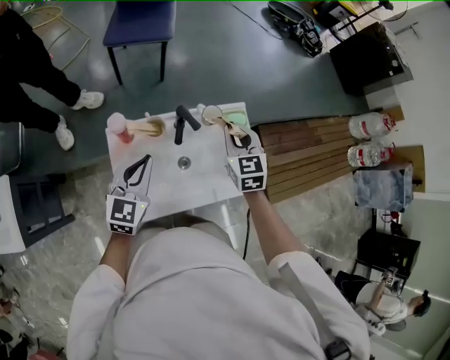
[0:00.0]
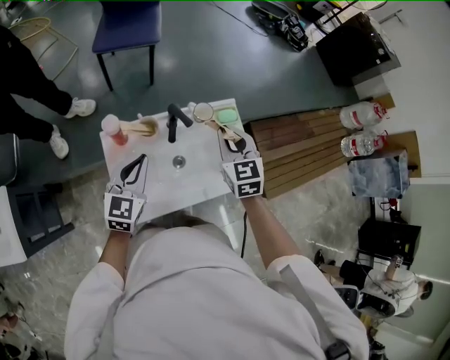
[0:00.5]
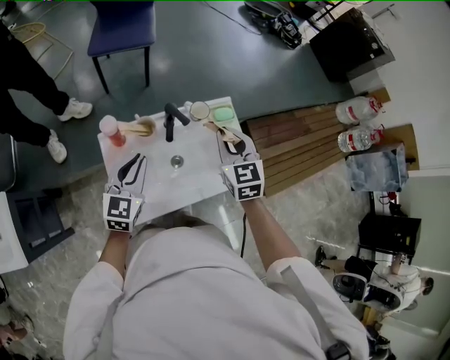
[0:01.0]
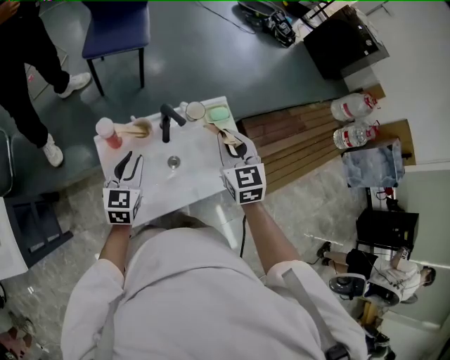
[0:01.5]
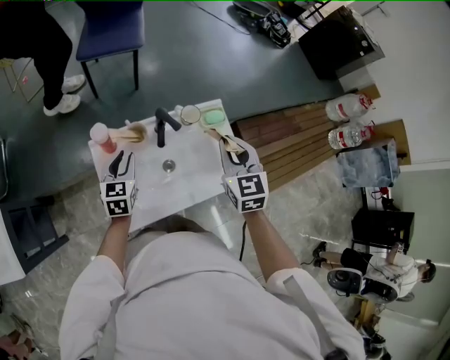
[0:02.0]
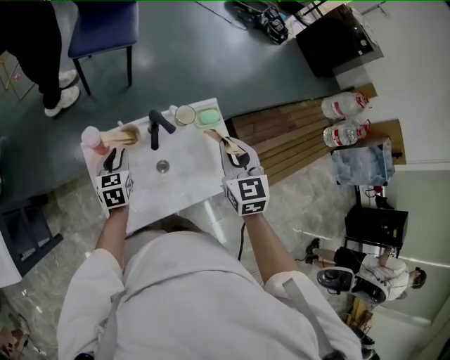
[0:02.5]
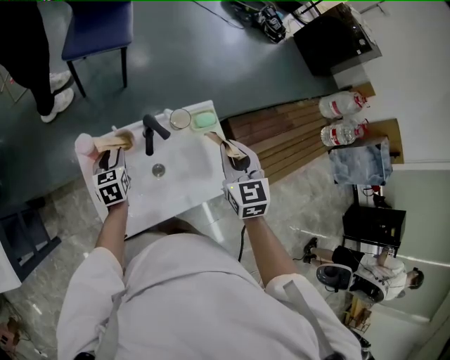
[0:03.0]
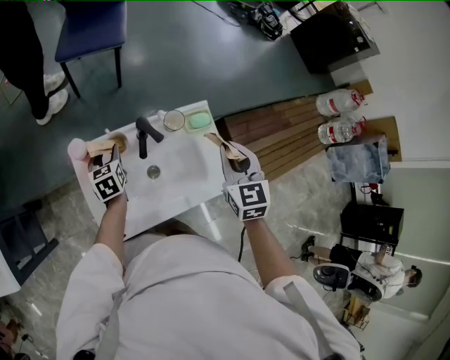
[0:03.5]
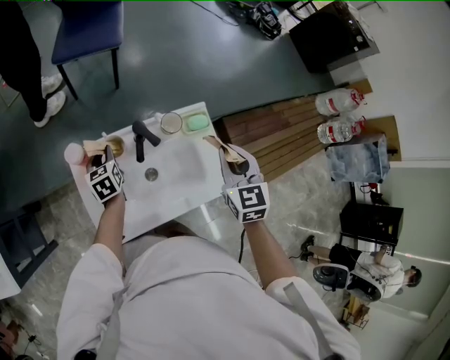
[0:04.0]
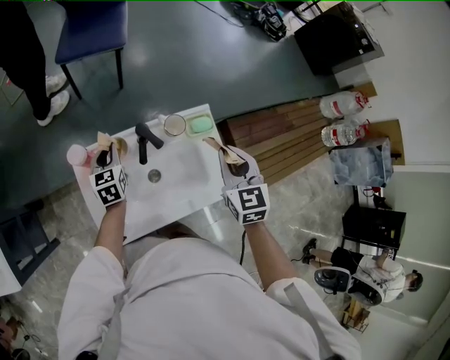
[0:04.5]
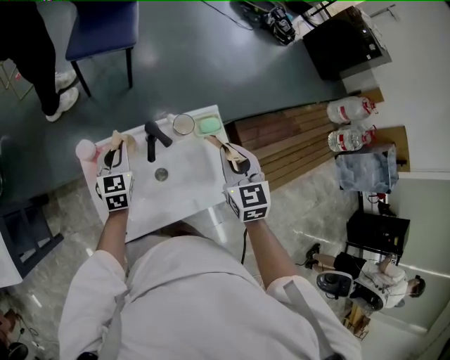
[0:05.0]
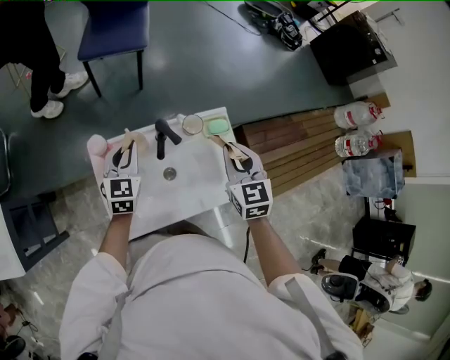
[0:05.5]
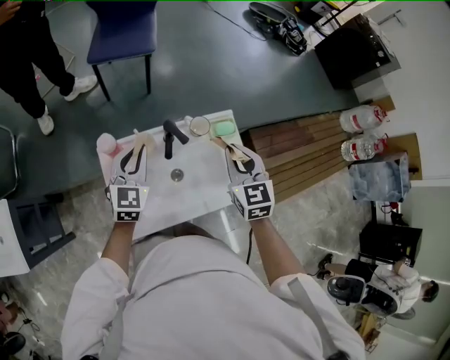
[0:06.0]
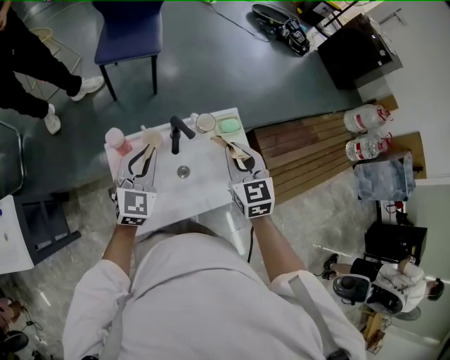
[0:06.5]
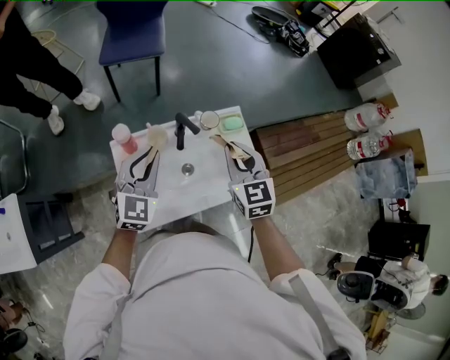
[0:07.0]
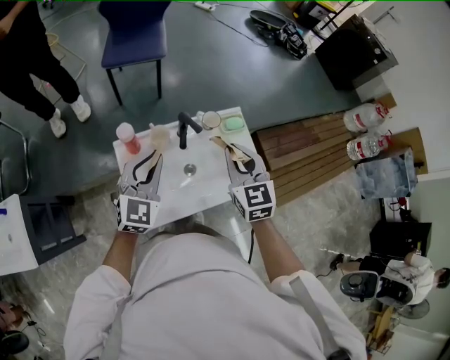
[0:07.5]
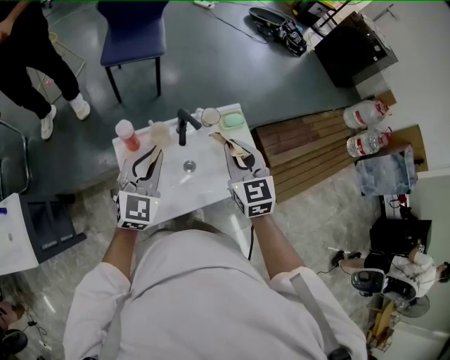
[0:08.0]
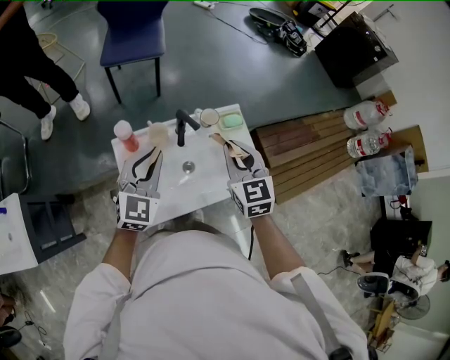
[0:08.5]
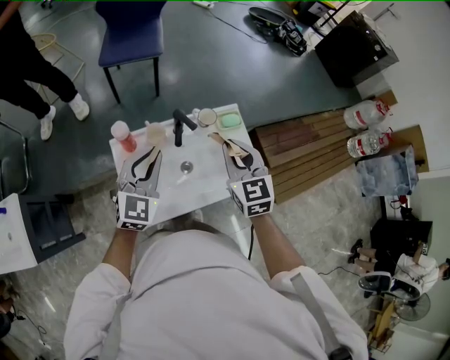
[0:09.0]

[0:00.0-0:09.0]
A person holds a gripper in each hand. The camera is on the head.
0:00.0 to 0:02.0: The right gripper goes some 10 cm backward and upward; the left gripper travels downward by some 10 cm, and opens.
0:02.0 to 0:04.5: The left gripper shifts roughly 10 cm forward, and opens, then closes once more, while the right gripper moves to the right, roughly 5 cm.
0:04.5 to 0:07.0: The left gripper moves upward and backward, some 20 cm, and turns by approximately 40 degrees. The right gripper shifts about 10 cm to the left.
0:07.0 to 0:09.0: The grippers stay close to where they were, moving slightly.

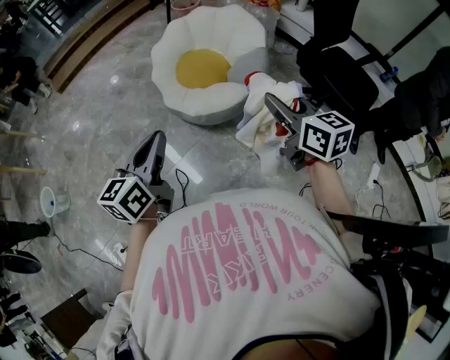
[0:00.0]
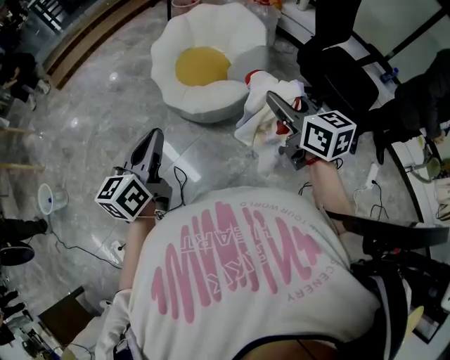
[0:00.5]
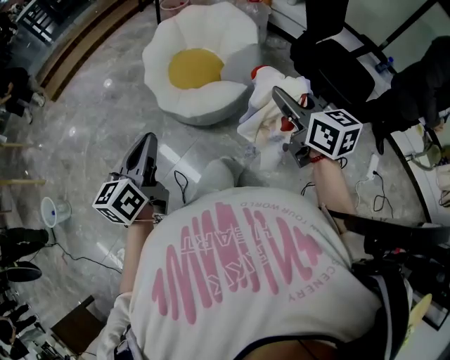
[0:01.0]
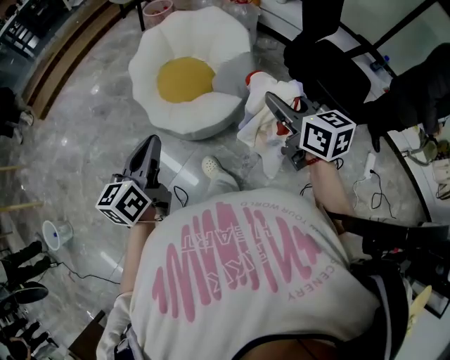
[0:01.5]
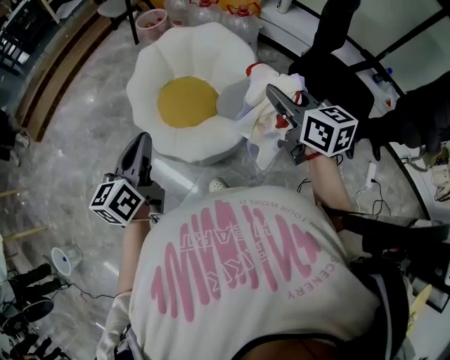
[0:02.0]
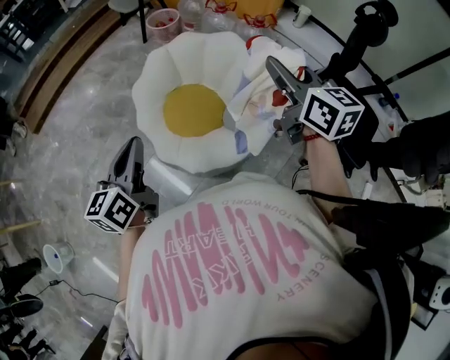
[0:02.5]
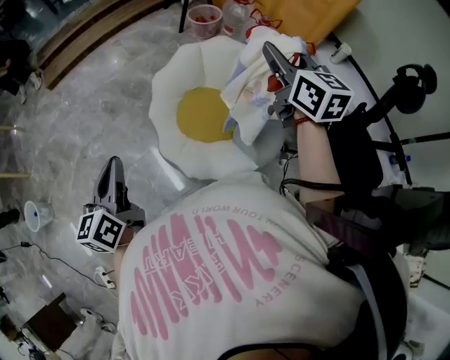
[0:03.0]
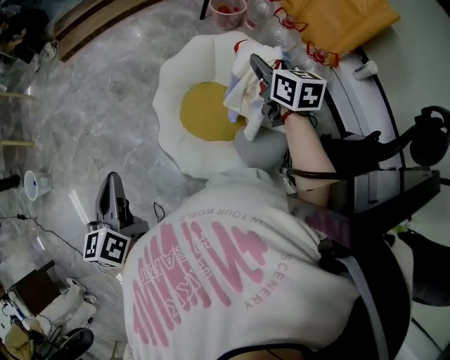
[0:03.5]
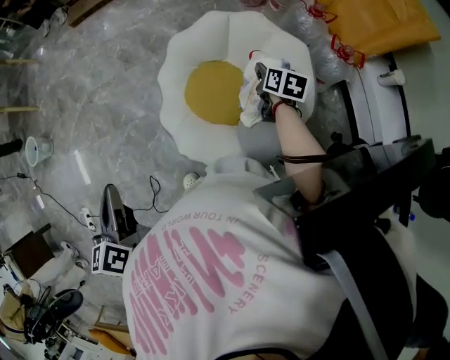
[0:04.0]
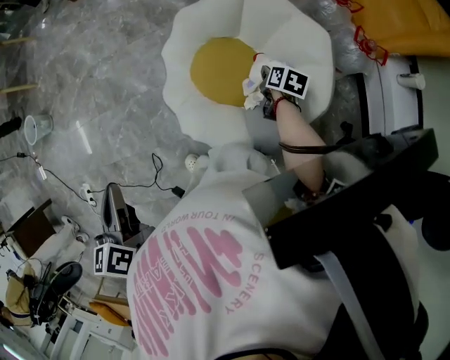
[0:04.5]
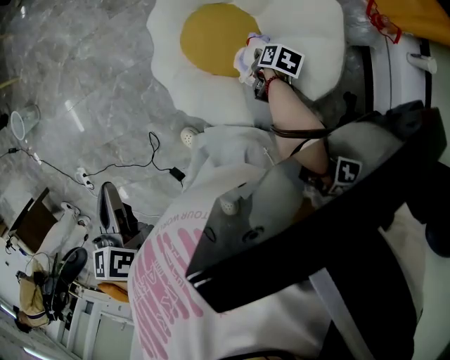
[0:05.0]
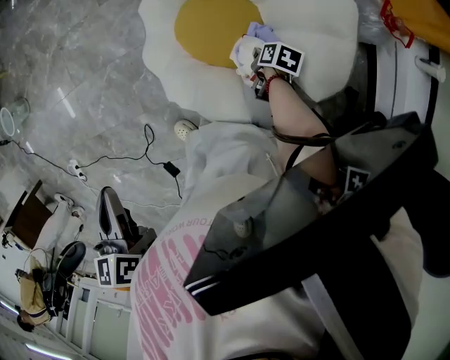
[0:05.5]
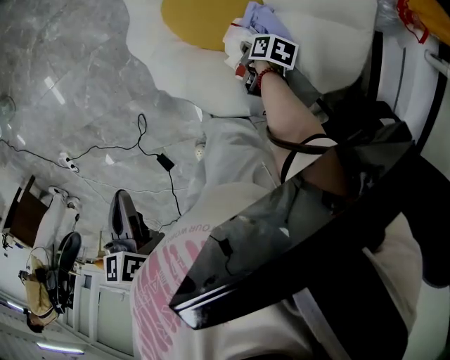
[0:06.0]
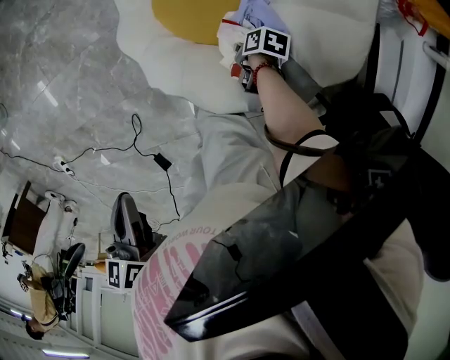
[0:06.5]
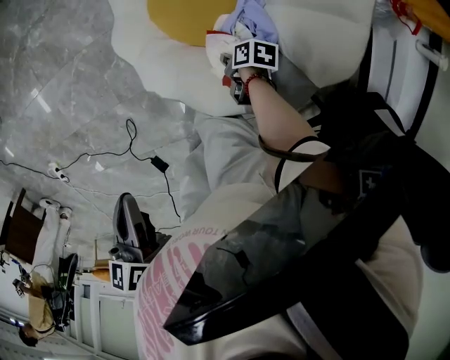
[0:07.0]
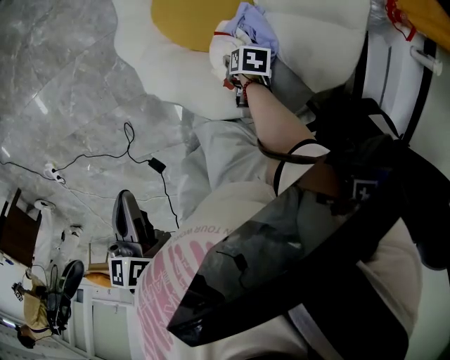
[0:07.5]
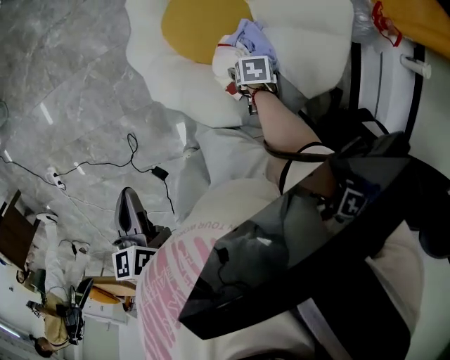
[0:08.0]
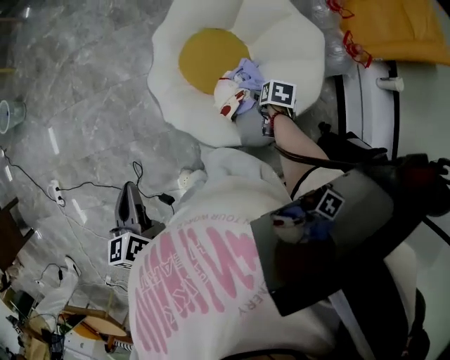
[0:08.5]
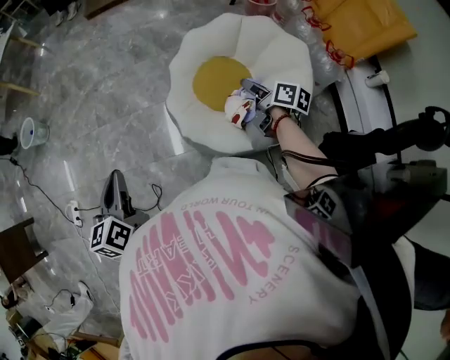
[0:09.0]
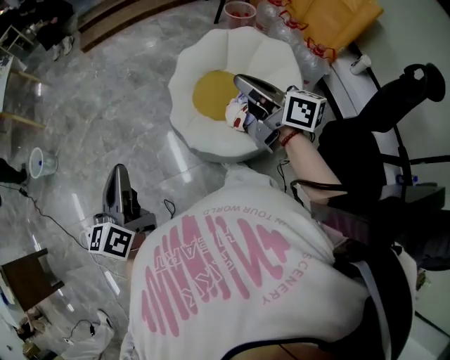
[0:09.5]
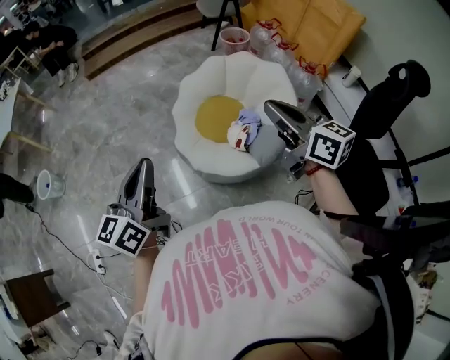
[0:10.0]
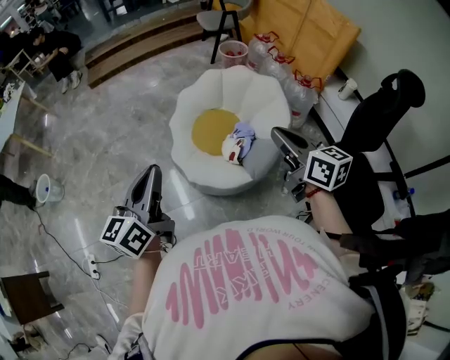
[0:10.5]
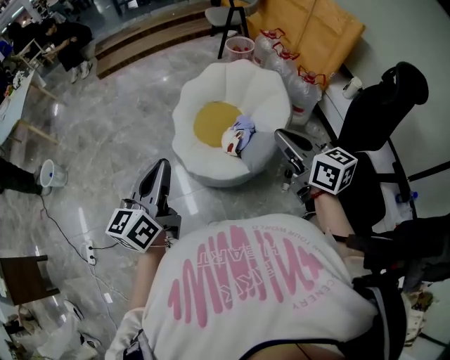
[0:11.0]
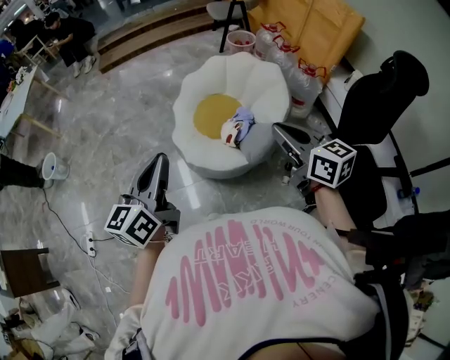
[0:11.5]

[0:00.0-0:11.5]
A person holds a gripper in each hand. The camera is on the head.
0:00.0 to 0:02.0: The grippers both shift forward by some 25 cm.
0:02.0 to 0:04.0: The left gripper rotates some 60 degrees. The right gripper ends up roughly 50 cm from where it was, and swivels about 30 degrees.
0:04.0 to 0:06.0: The right gripper shifts some 30 cm downward, and swivels roughly 40 degrees, while the left gripper shifts roughly 10 cm downward, and points its fingers approximately 40 degrees further downward.
0:06.0 to 0:07.5: The right gripper rotates roughly 20 degrees, and opens up.
0:07.5 to 0:09.5: The right gripper goes about 50 cm upward, tilts its fingers roughly 80 degrees upward, and closes up, while the left gripper ends up roughly 20 cm from where it was, and points its fingers some 50 degrees further upward.
0:09.5 to 0:11.5: The right gripper goes about 20 cm backward and to the right, and changes its angle by about 20 degrees. Meanwhile the left gripper heads to the right, covering some 15 cm.

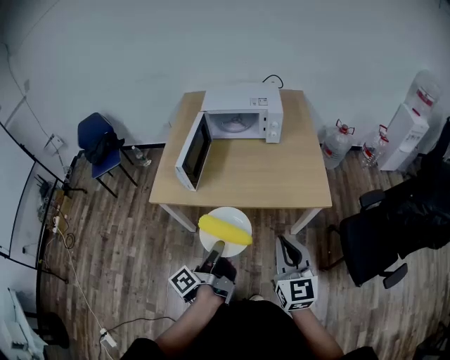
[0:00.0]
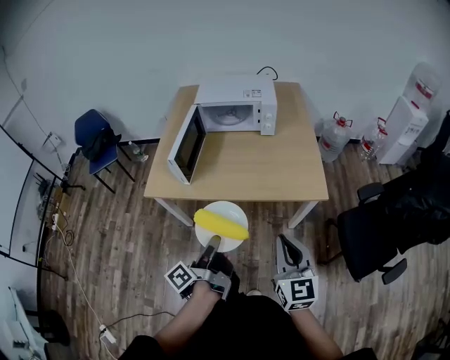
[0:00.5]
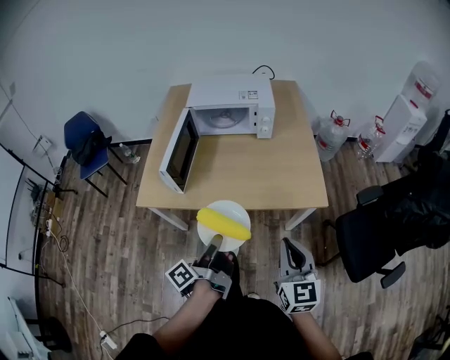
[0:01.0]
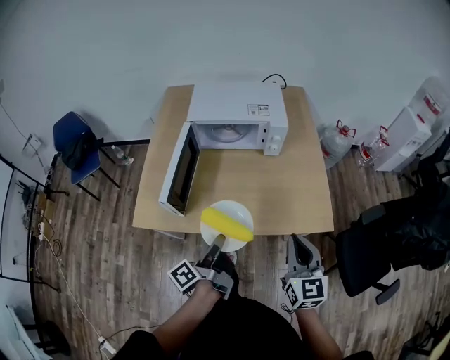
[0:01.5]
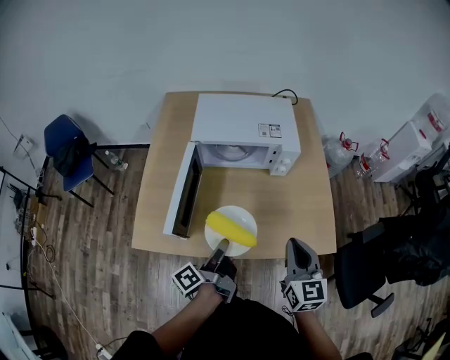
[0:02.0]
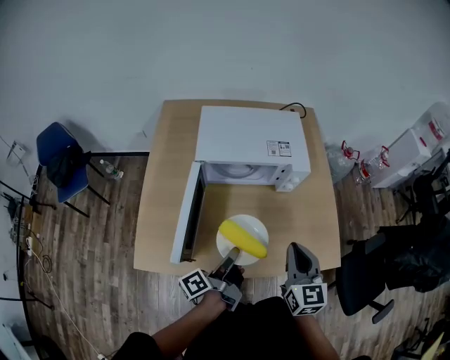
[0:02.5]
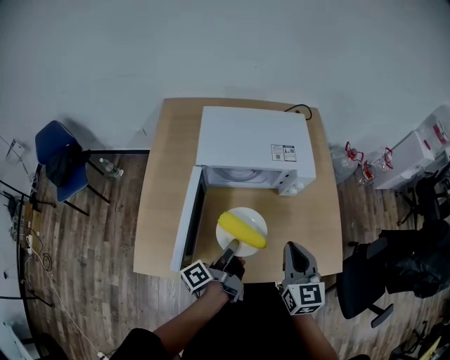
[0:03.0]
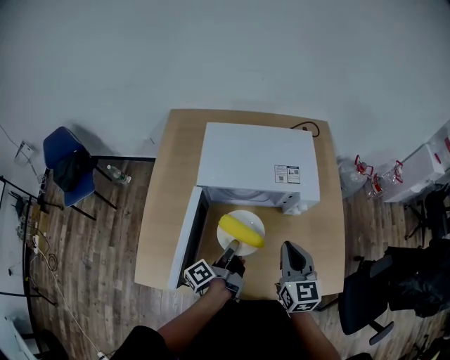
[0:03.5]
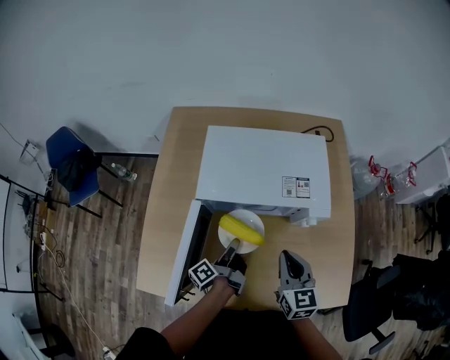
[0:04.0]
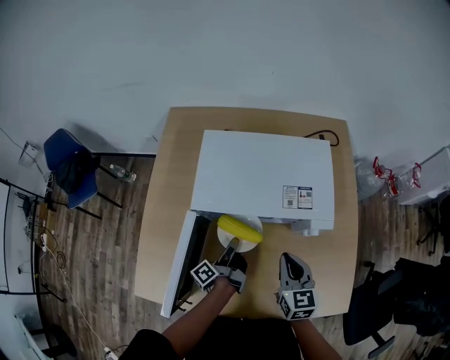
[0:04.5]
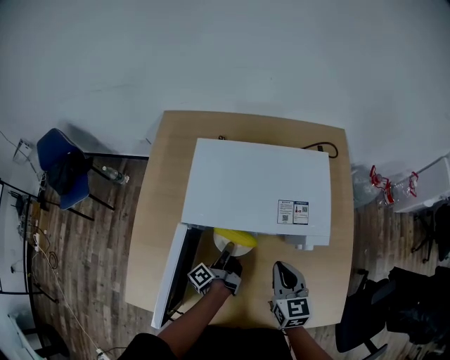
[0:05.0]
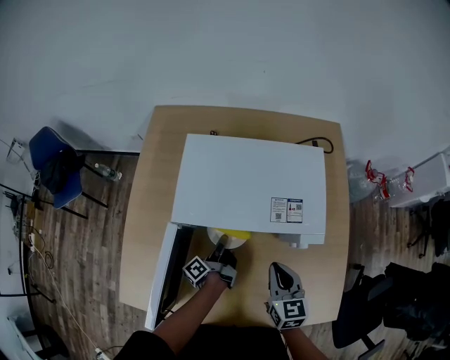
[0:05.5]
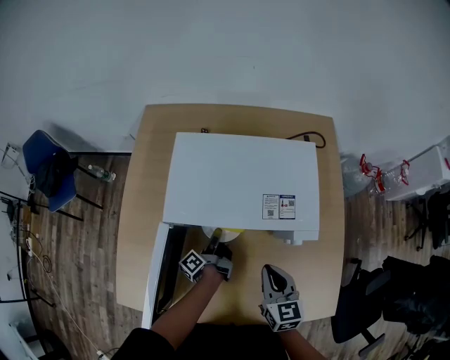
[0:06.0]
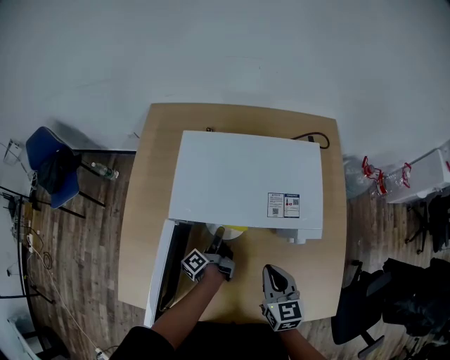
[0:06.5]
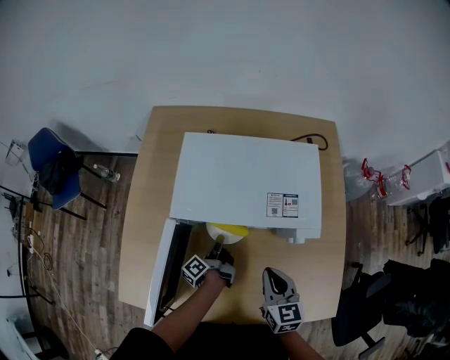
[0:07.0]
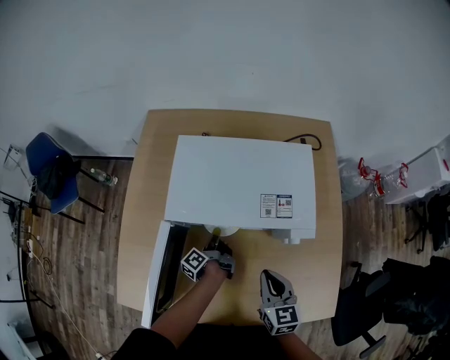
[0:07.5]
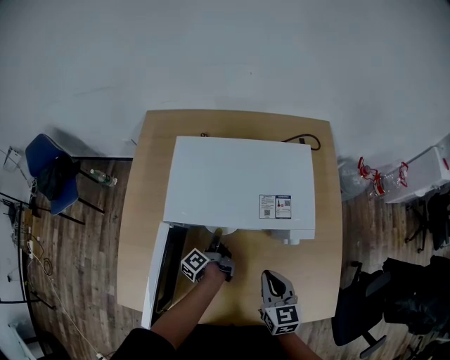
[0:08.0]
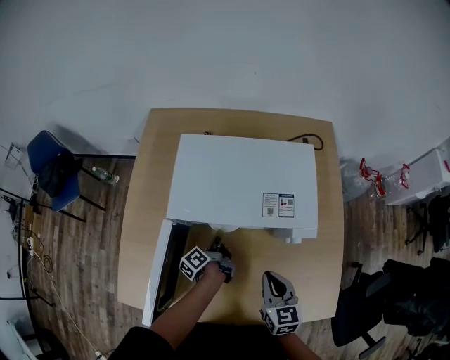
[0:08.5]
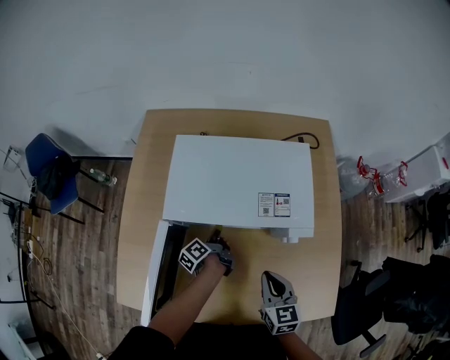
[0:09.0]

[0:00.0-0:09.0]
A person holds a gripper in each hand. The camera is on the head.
0:00.0 to 0:02.0: The right gripper moves approximately 30 cm.
0:02.0 to 0:04.5: The right gripper shifts by some 30 cm.
